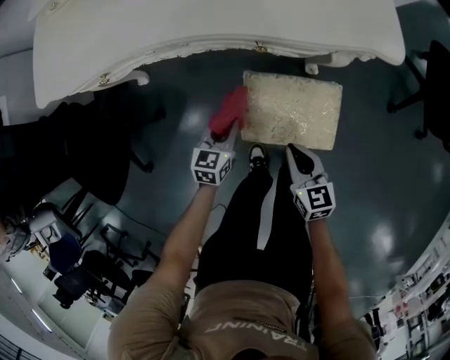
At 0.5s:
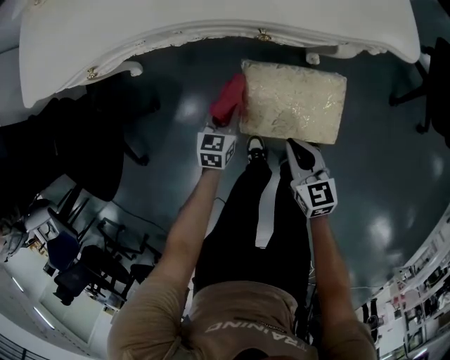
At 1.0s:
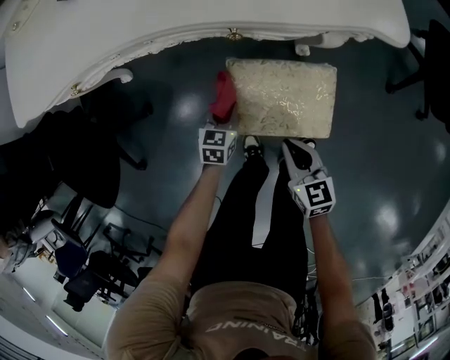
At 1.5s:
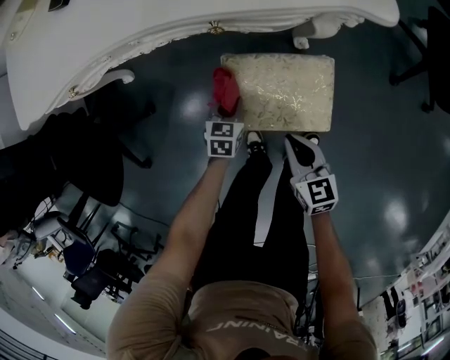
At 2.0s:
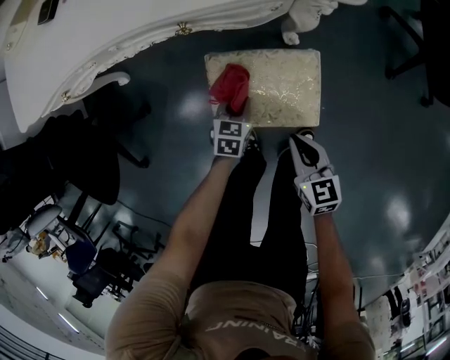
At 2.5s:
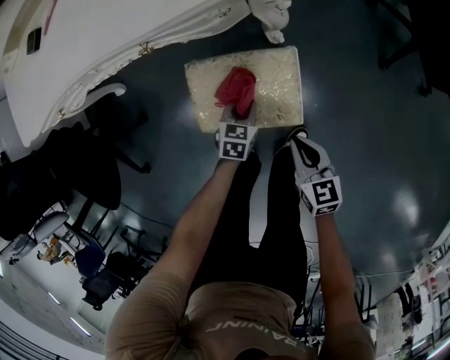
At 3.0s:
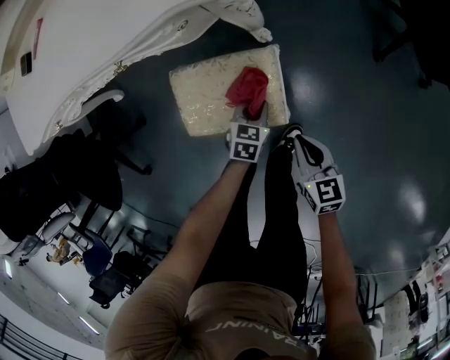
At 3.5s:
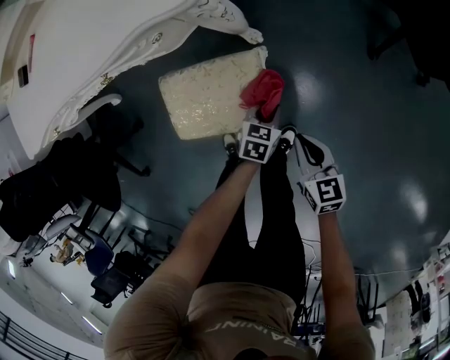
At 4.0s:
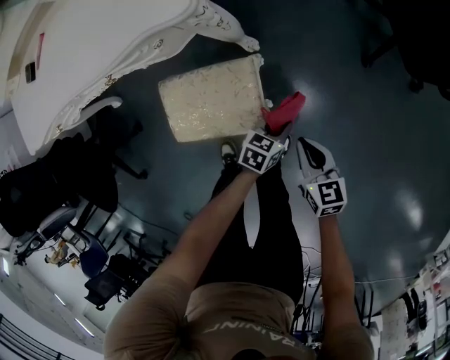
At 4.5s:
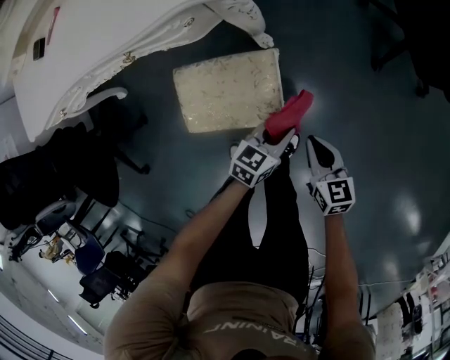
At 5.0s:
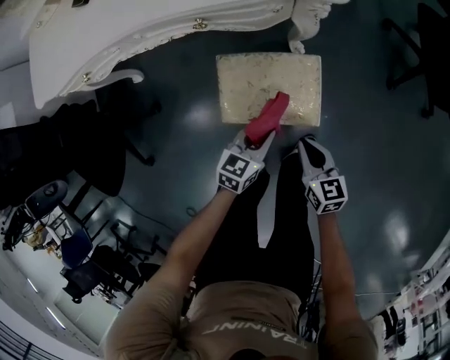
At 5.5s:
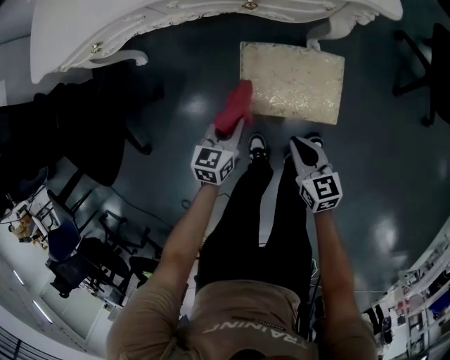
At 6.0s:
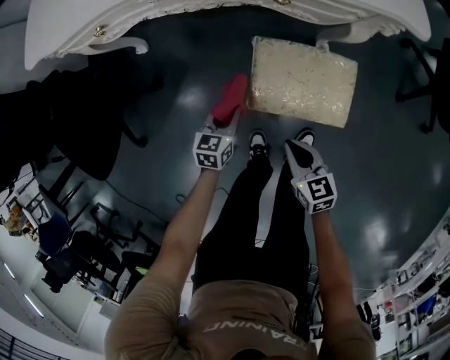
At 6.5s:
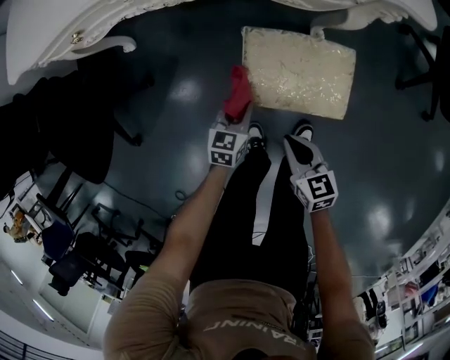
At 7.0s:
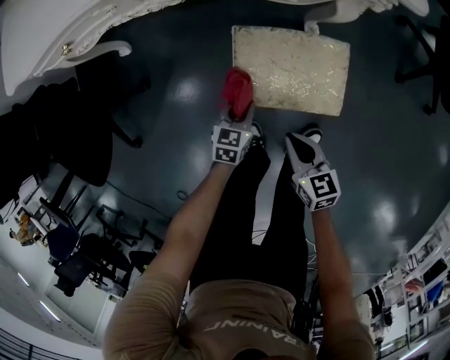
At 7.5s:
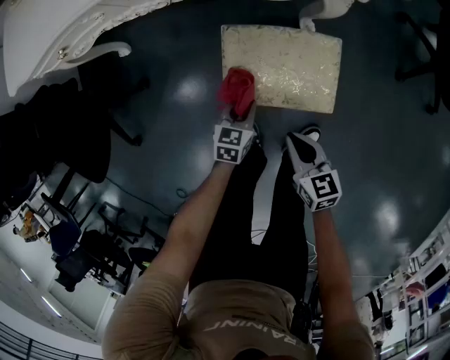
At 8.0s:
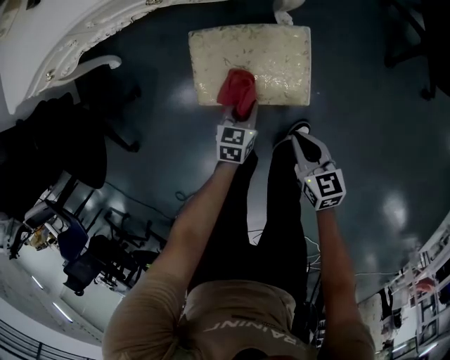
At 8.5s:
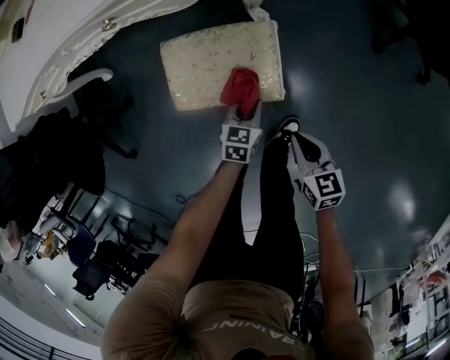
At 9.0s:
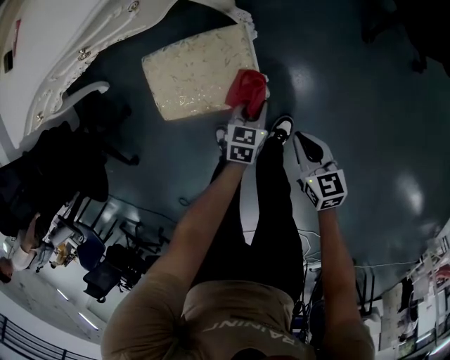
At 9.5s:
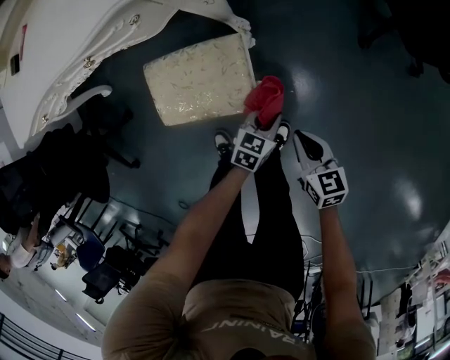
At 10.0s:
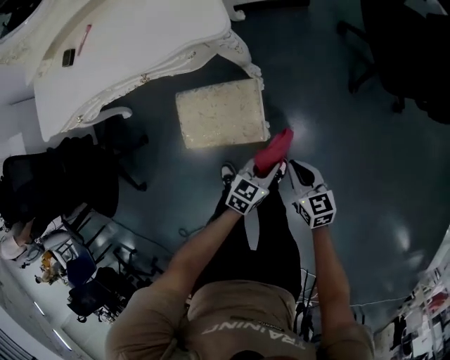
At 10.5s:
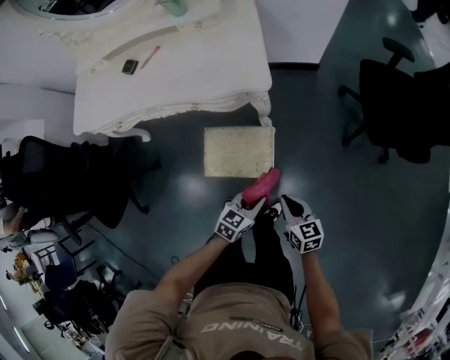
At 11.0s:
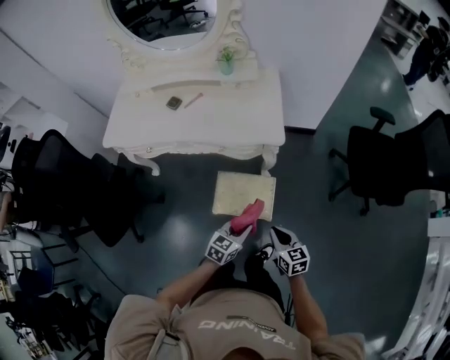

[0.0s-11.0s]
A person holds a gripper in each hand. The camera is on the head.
0.0s to 2.0s: The left gripper goes approximately 20 cm to the right and downward. The right gripper moves to the right, some 10 cm.
2.0s to 3.5s: The two grippers go roughly 25 cm to the right.
3.5s to 5.5s: The left gripper shifts by roughly 40 cm, and swivels some 30 degrees, while the right gripper moves roughly 30 cm.
5.5s to 7.5s: The left gripper is displaced downward and to the right by approximately 15 cm. Meanwhile the right gripper travels to the left and back again, about 5 cm each way.
7.5s to 9.0s: Both grippers move to the right, some 30 cm.
9.0s to 11.0s: The left gripper goes some 40 cm upward, while the right gripper goes about 40 cm upward and to the left.

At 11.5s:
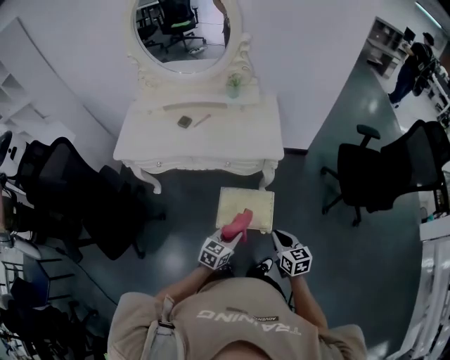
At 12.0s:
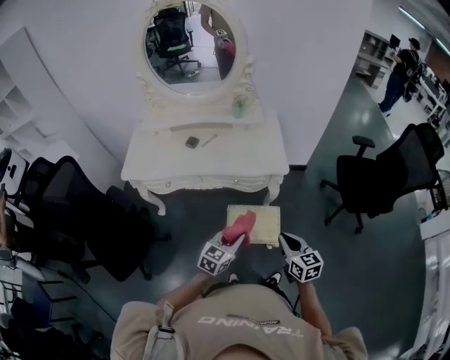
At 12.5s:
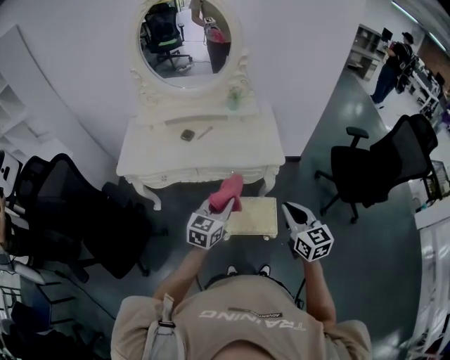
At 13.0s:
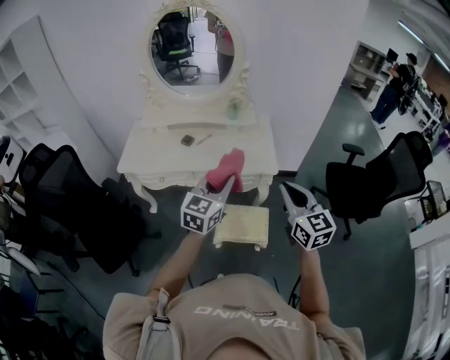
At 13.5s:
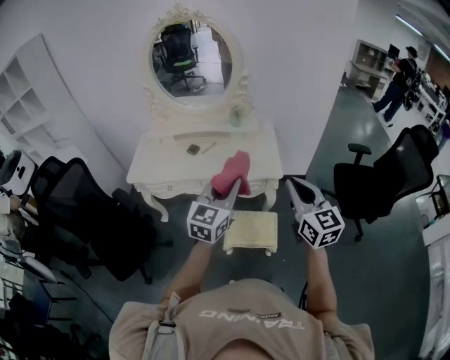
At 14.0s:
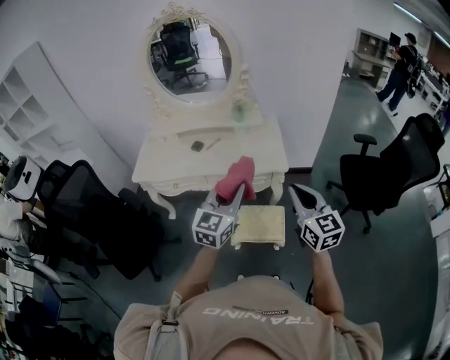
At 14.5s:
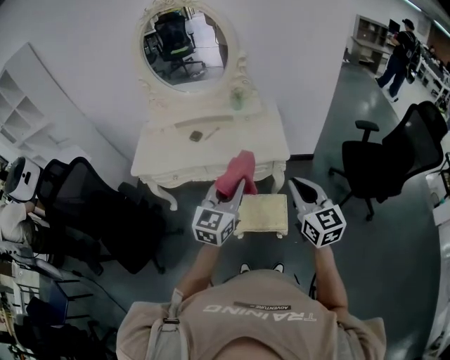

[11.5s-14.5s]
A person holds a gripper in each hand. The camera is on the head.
11.5s to 13.0s: The two grippers go roughly 30 cm upward. The right gripper changes its angle by about 30 degrees. Meanwhile the left gripper turns by roughly 30 degrees.
13.0s to 14.5s: The grippers stay close to where they were, moving slightly.

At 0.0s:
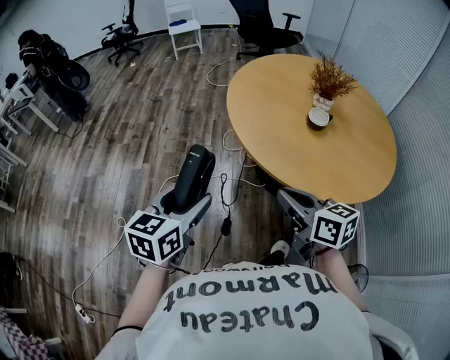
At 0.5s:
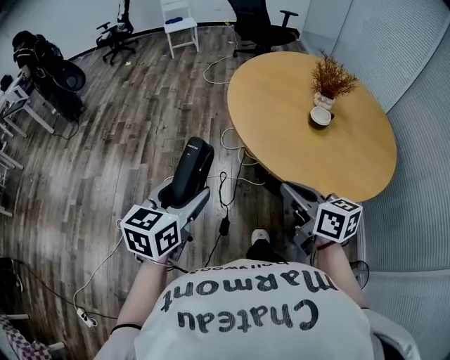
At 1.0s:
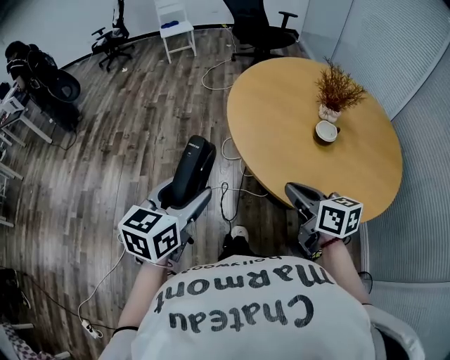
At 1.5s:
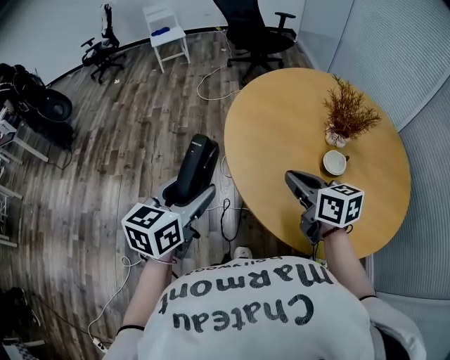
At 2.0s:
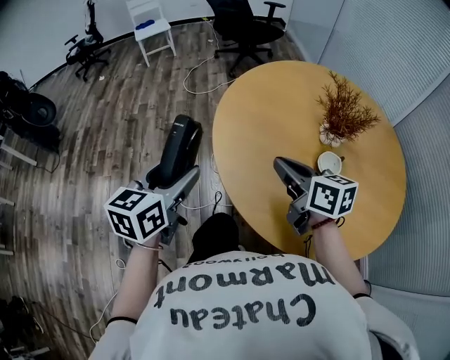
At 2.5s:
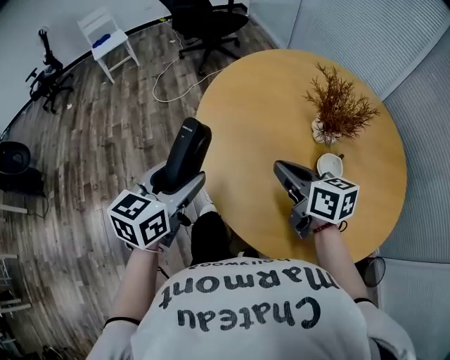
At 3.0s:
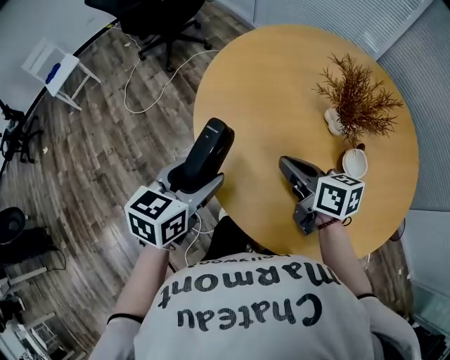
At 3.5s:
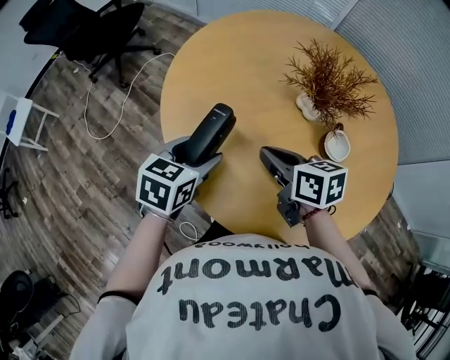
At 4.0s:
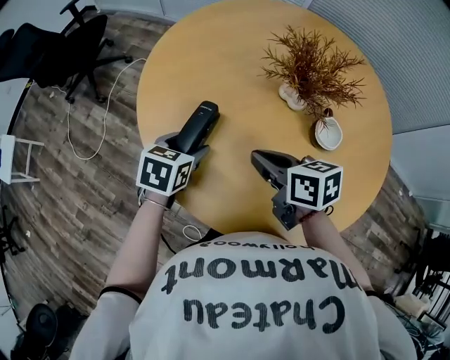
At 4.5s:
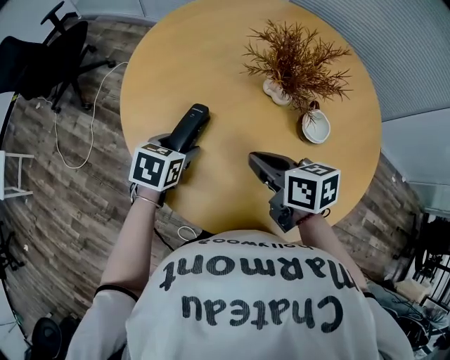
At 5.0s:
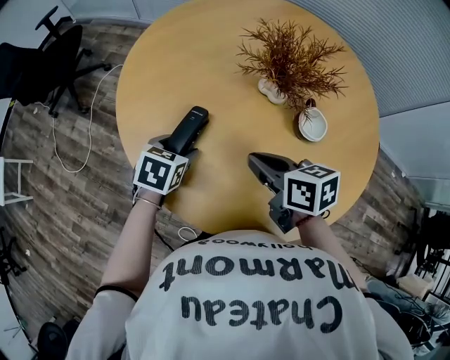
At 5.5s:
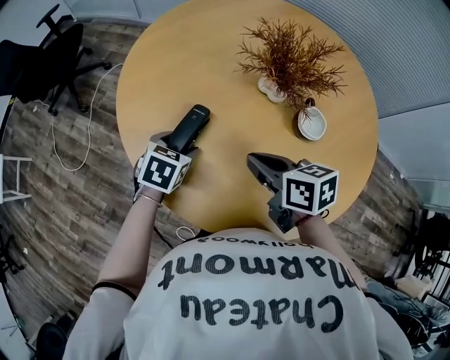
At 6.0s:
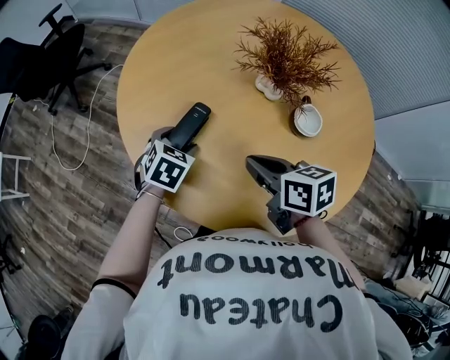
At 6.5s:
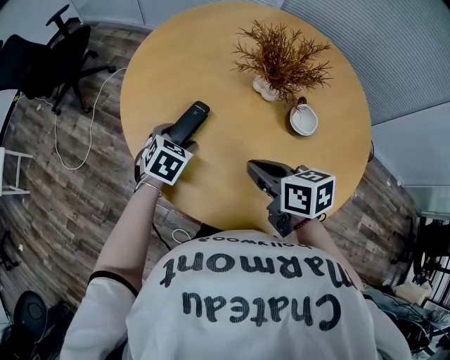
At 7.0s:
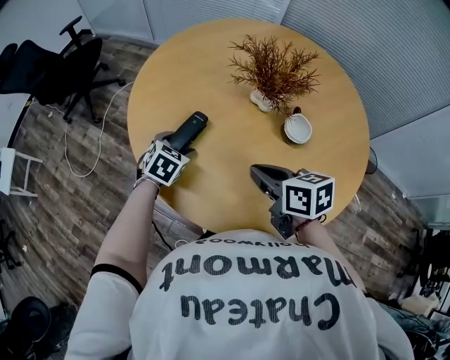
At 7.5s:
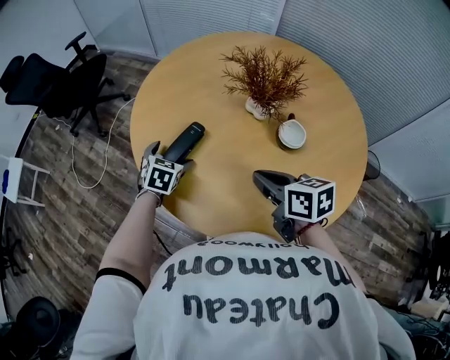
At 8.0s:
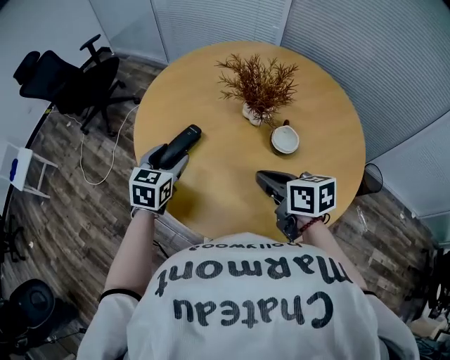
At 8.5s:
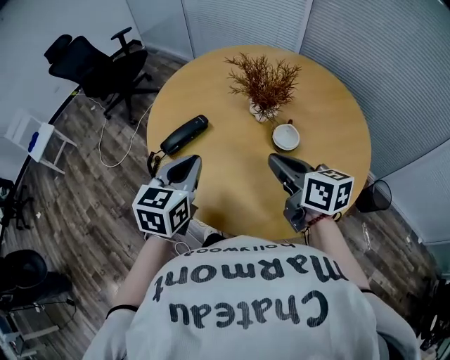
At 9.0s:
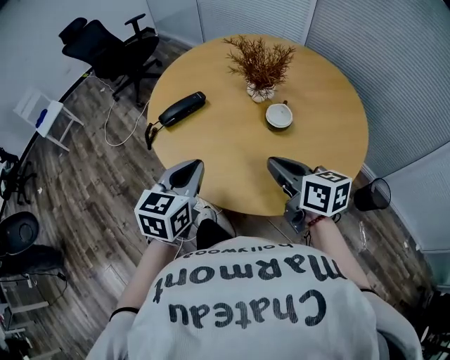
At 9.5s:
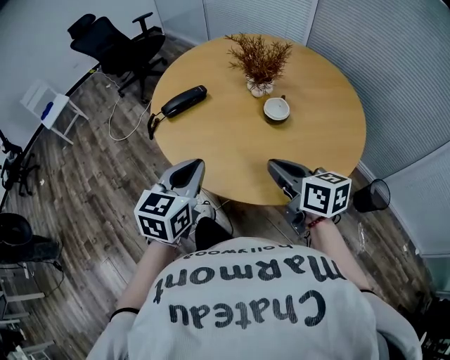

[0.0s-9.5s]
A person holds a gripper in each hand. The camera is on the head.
0.0s to 2.0s: Both grippers travel together forward, roughly 35 cm.
2.0s to 4.0s: The right gripper moves some 25 cm, and turns by some 50 degrees; the left gripper changes place by approximately 40 cm, and turns by about 70 degrees.
4.0s to 5.5s: There are only small adjustments of the grippers.
5.5s to 7.5s: The left gripper opens up. The right gripper moves backward, about 5 cm.
7.5s to 9.5s: The right gripper is displaced backward and to the right by about 20 cm, and swivels about 20 degrees, while the left gripper shifts approximately 40 cm backward and upward, swivels approximately 40 degrees, and closes its fingers.

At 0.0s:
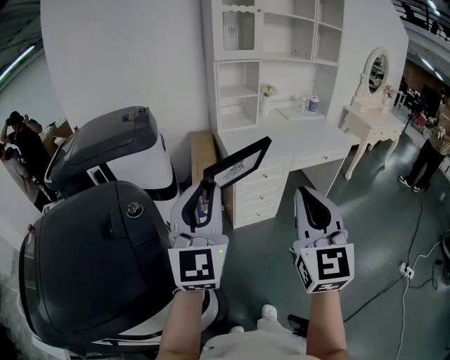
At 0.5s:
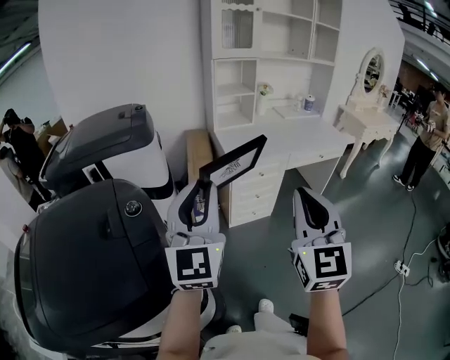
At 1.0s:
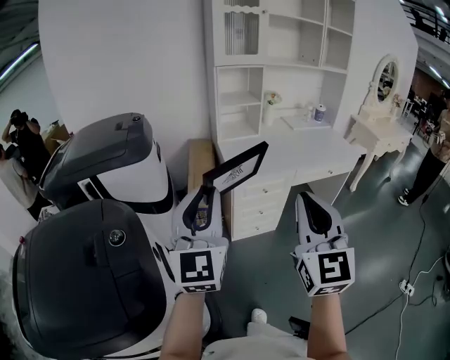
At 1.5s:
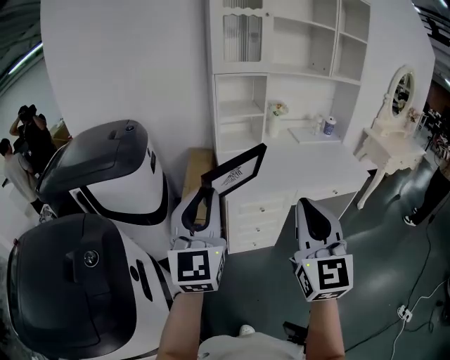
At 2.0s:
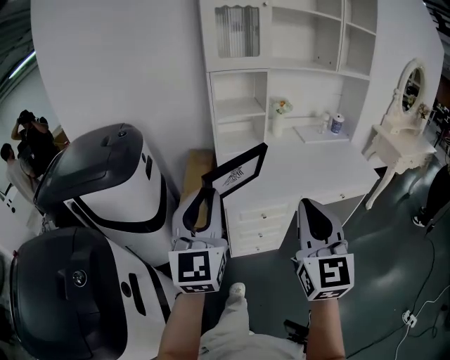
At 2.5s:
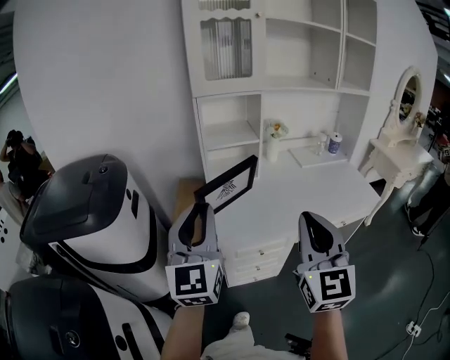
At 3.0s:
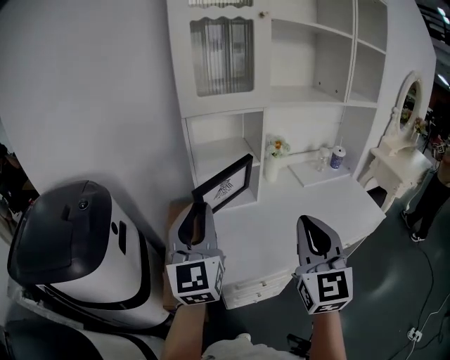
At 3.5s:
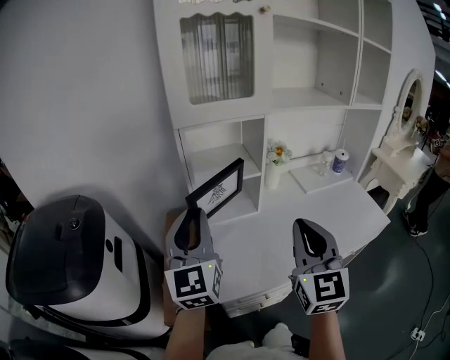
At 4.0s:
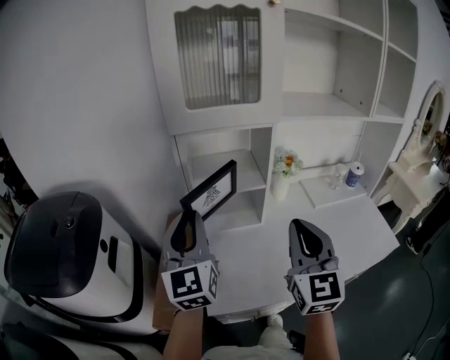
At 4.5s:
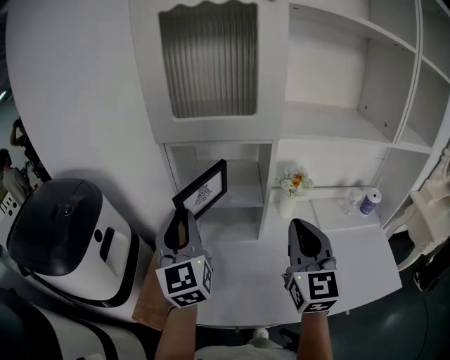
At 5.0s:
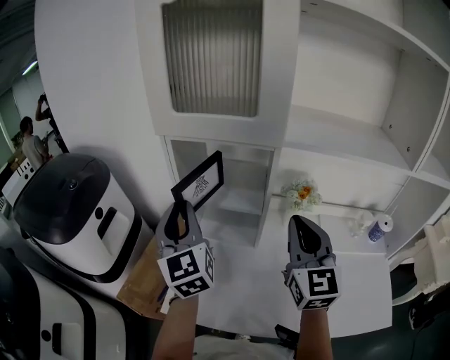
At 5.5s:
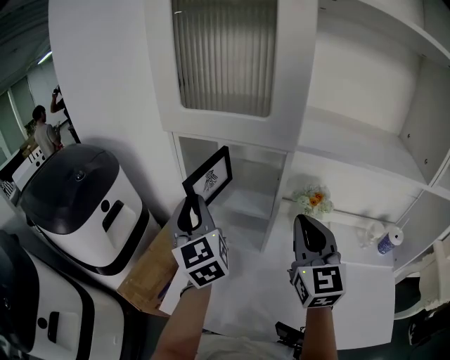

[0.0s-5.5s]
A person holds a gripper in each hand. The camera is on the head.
0.0s to 2.0s: The two grippers go roughly 30 cm forward and to the right.
2.0s to 3.5s: Both grippers travel together forward, roughly 35 cm.
3.5s to 5.5s: The right gripper moves some 30 cm, and changes its angle by about 30 degrees; the left gripper shifts by about 15 cm, and swivels approximately 40 degrees.
